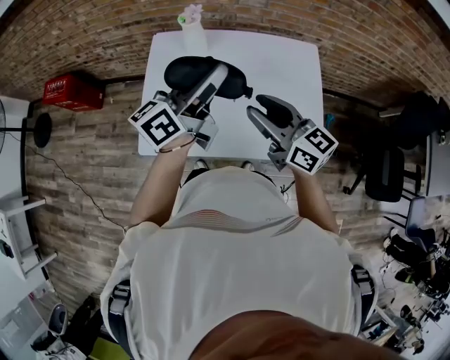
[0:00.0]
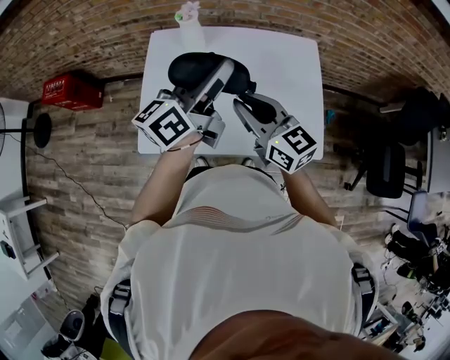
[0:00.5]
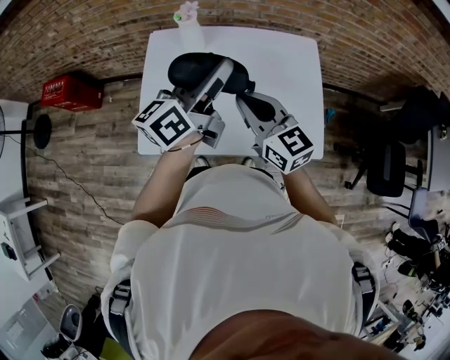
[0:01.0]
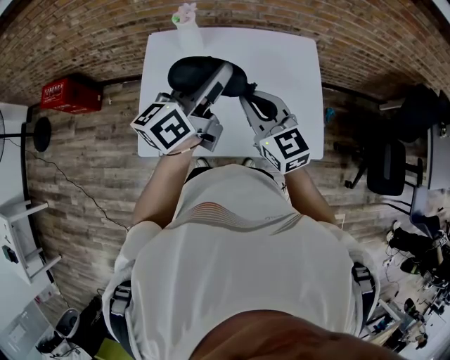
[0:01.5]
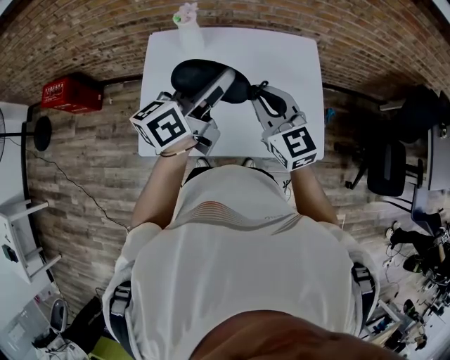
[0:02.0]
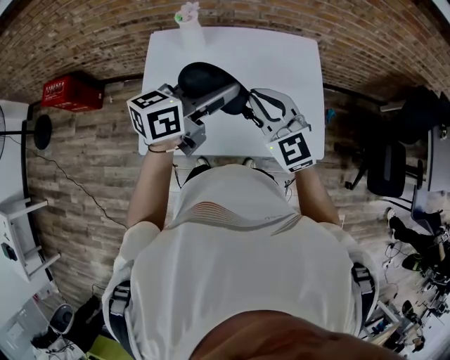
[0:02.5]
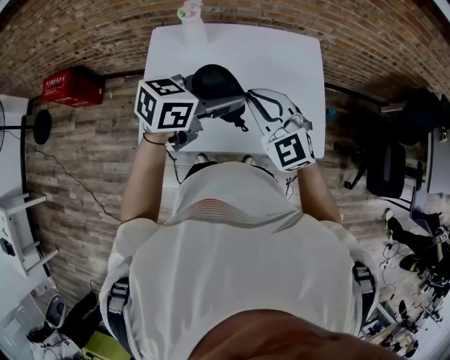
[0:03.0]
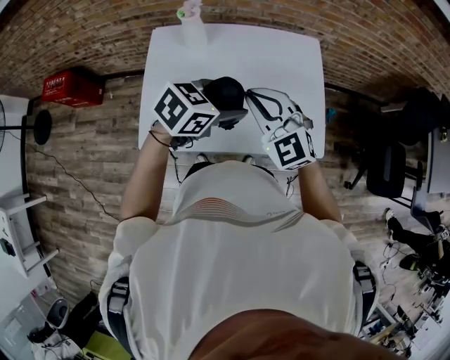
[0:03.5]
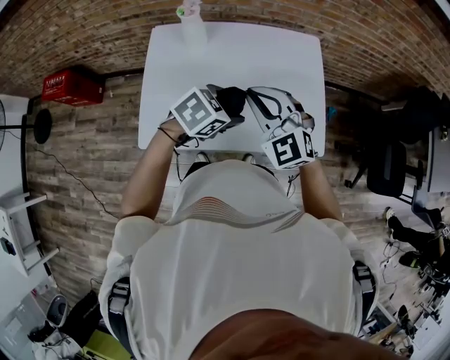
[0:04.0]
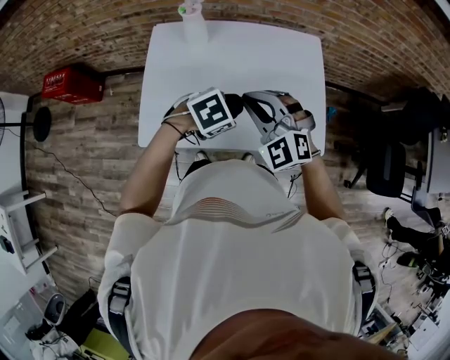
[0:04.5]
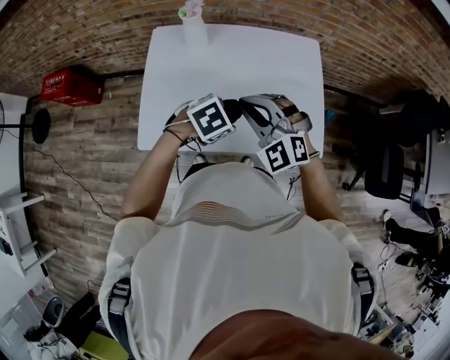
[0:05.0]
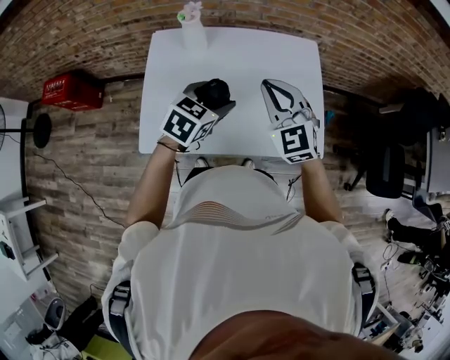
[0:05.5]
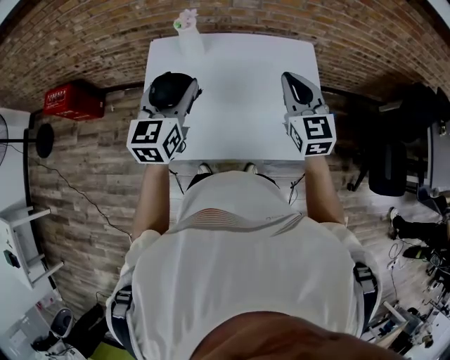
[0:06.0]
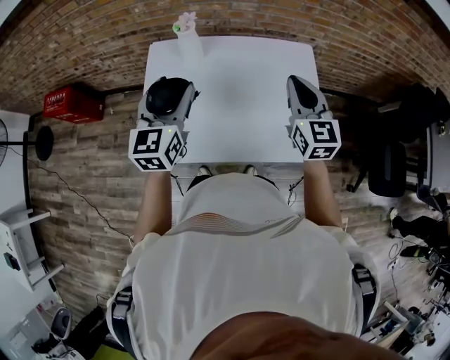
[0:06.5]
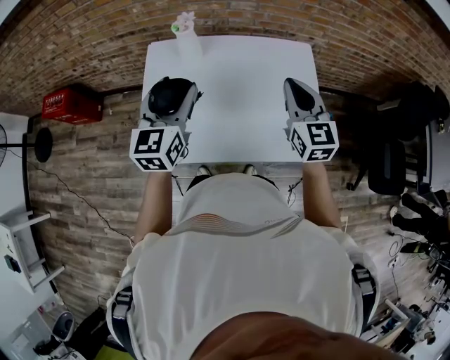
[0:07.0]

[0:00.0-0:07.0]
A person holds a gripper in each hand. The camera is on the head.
0:00.0 to 0:02.0: The right gripper swivels roughly 30 degrees.
0:02.0 to 0:03.5: The right gripper changes its angle by approximately 30 degrees. Meanwhile the left gripper goes roughly 10 cm downward, to the right and backward, and angles its fingers downward, by about 40 degrees.
0:03.5 to 0:05.0: The left gripper heads downward, covering roughly 10 cm, and changes its angle by about 30 degrees.
0:05.0 to 0:07.0: The right gripper travels to the right, forward and upward by some 15 cm, and twists some 50 degrees clockwise, seen from behind, while the left gripper moves upward, to the left and forward, approximately 25 cm, and angles its fingers upward, by approximately 50 degrees.

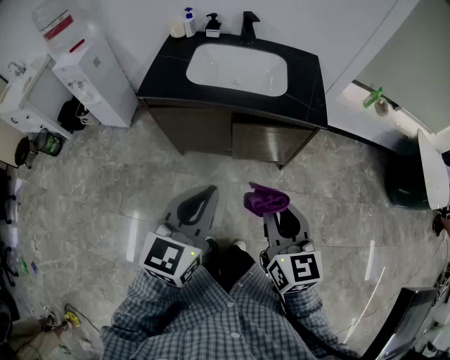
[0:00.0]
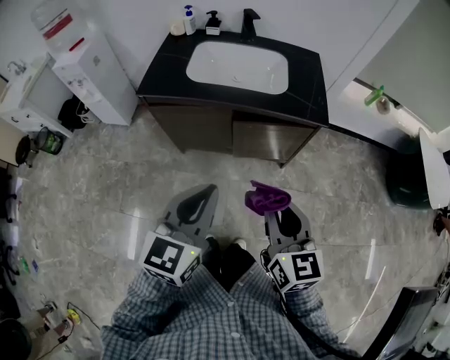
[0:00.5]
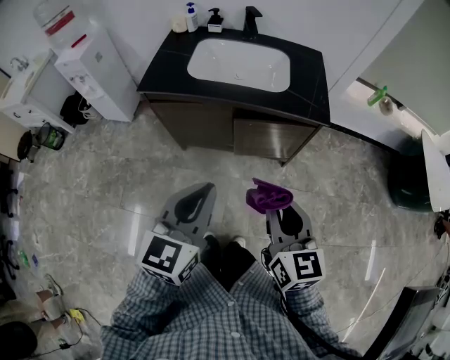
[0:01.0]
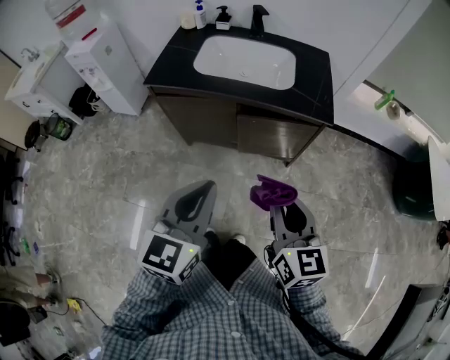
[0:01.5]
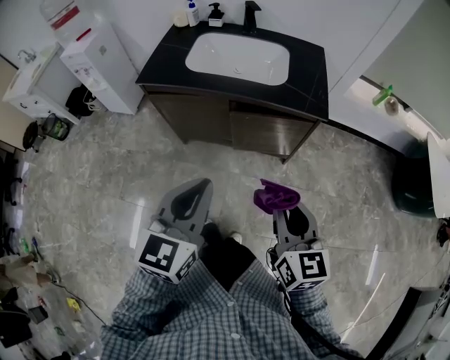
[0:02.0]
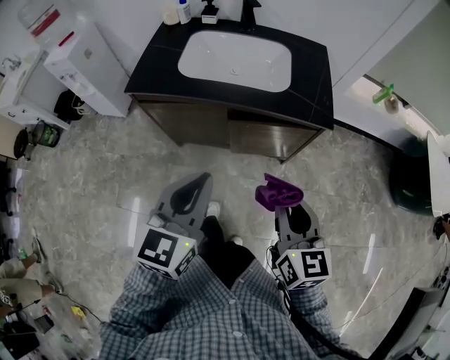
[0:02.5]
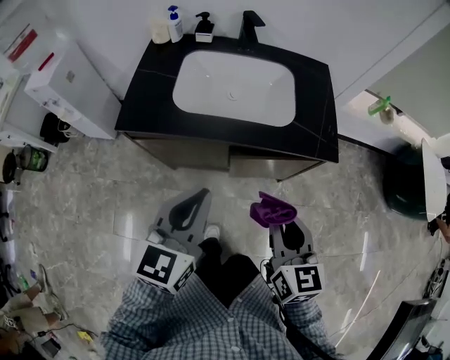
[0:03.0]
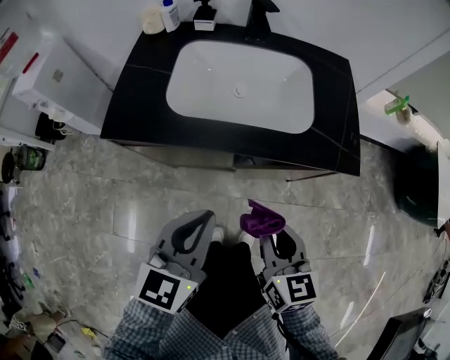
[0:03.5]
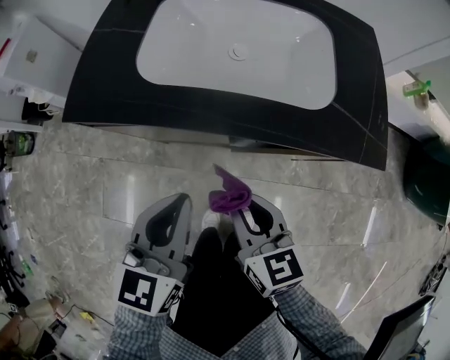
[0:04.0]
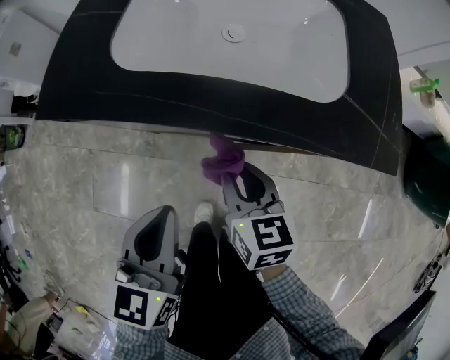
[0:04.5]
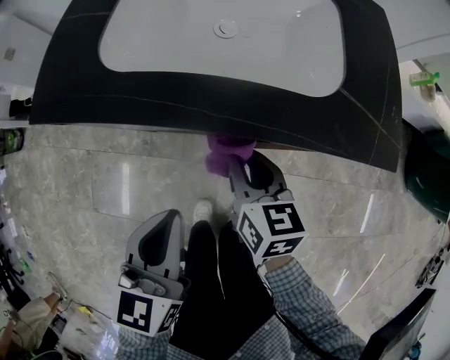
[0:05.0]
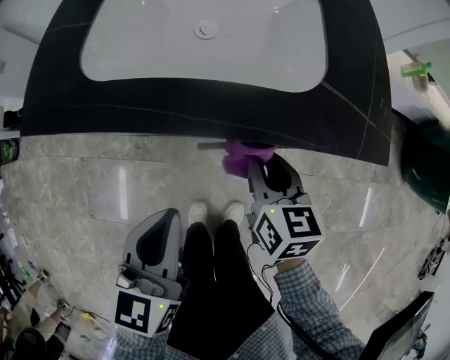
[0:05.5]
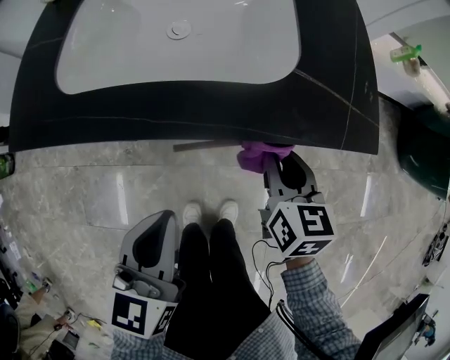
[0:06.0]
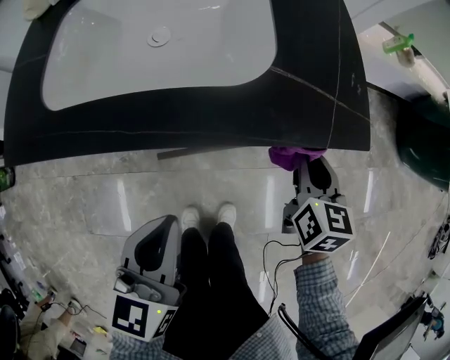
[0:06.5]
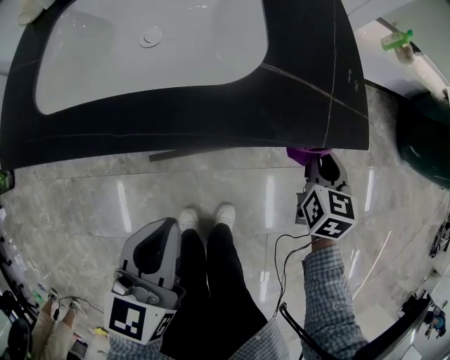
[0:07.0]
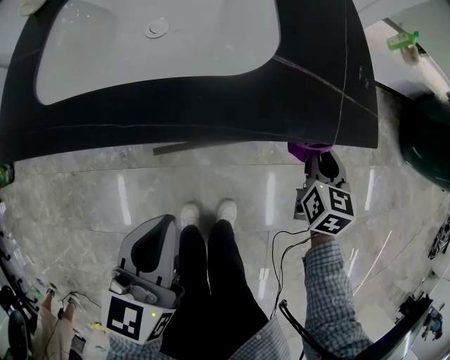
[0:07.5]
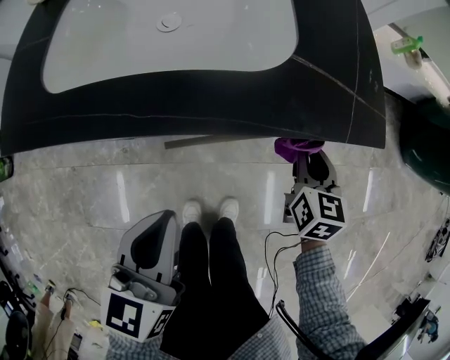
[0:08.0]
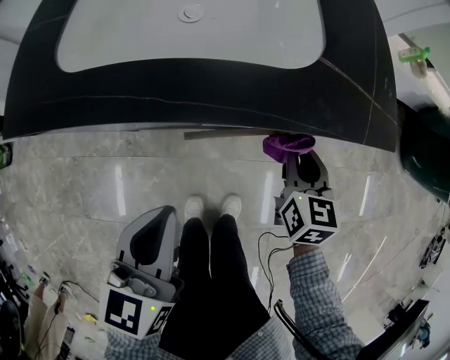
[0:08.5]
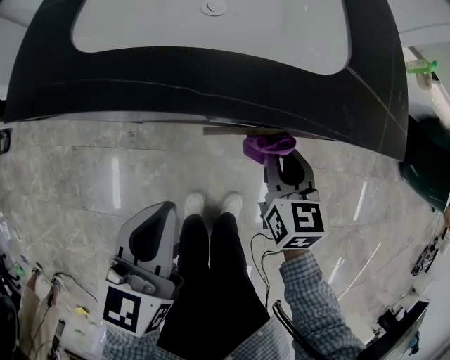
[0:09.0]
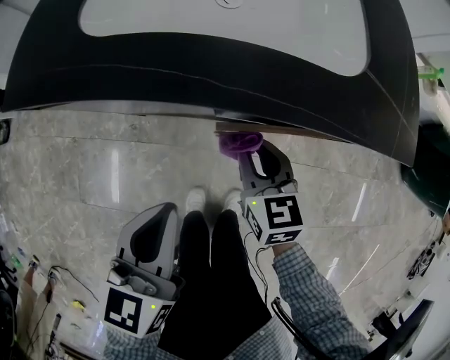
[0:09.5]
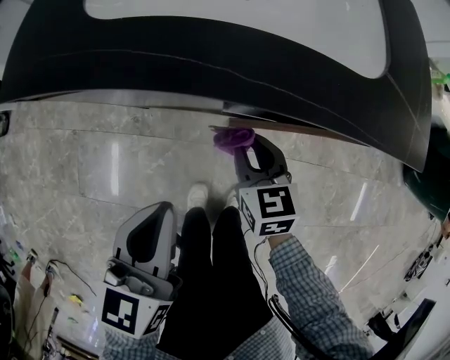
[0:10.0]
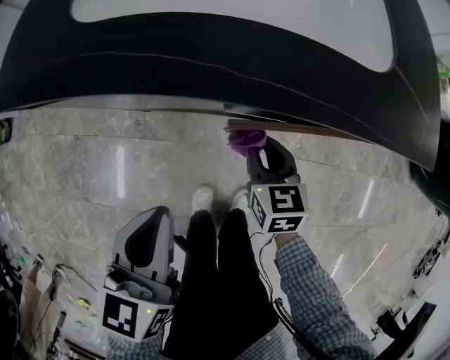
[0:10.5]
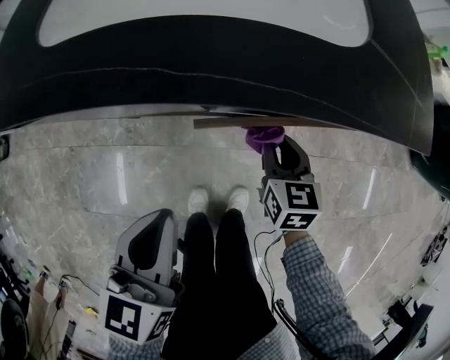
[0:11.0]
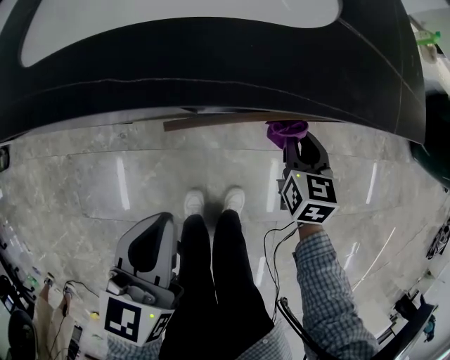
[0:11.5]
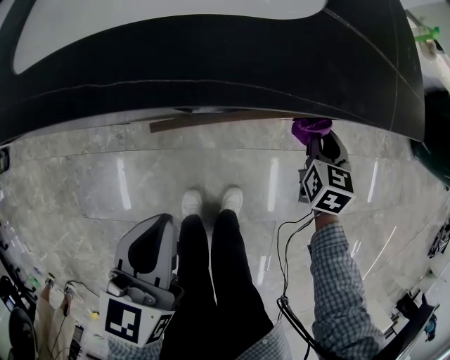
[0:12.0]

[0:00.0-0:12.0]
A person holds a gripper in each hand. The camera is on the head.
0:00.0 to 0:02.0: The right gripper travels to the right by approximately 10 cm.
0:02.0 to 0:04.0: The right gripper moves forward, downward and to the left, approximately 40 cm. Meanwhile the left gripper travels forward and downward by about 35 cm.
0:04.0 to 0:06.0: The right gripper moves to the right, forward and downward, about 25 cm, and changes its angle by roughly 20 degrees. The left gripper heads to the right and downward, covering some 10 cm.
0:06.0 to 0:08.0: The right gripper is displaced to the right and downward by some 10 cm.
0:08.0 to 0:10.0: The left gripper shifts approximately 10 cm to the left; the right gripper heads to the left, covering about 25 cm, and turns by approximately 30 degrees.
0:10.0 to 0:12.0: The right gripper travels to the right by approximately 30 cm, and turns by some 30 degrees. Meanwhile the left gripper travels to the right by roughly 10 cm.

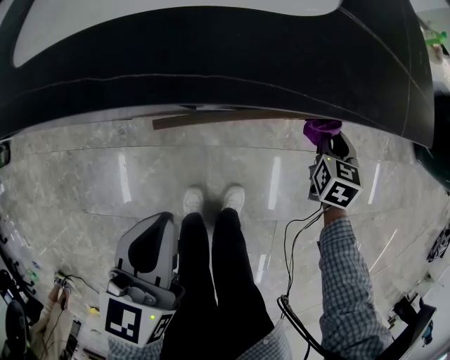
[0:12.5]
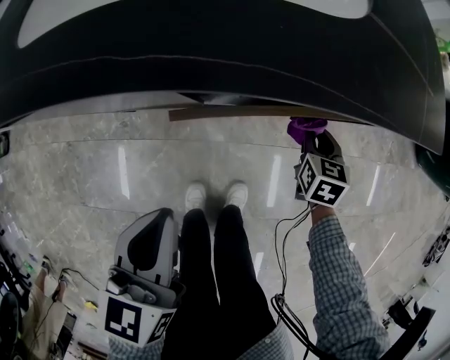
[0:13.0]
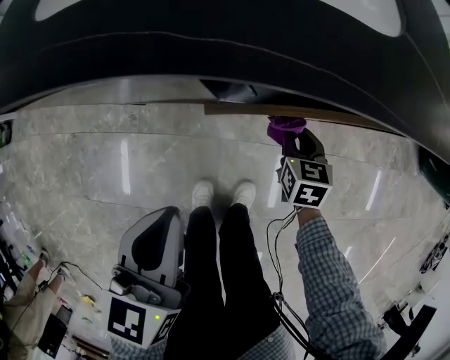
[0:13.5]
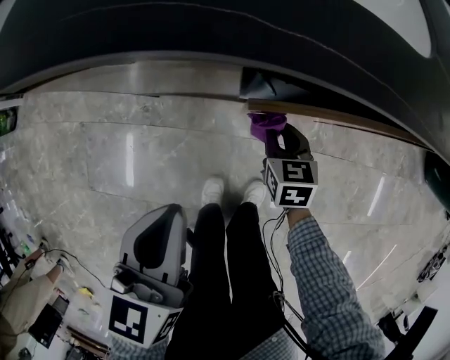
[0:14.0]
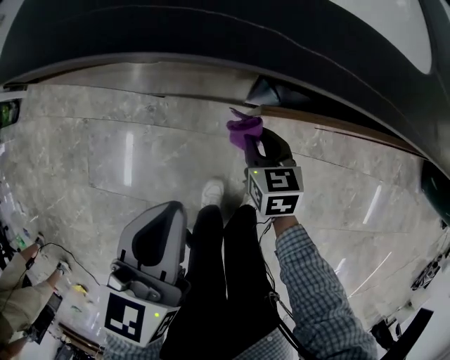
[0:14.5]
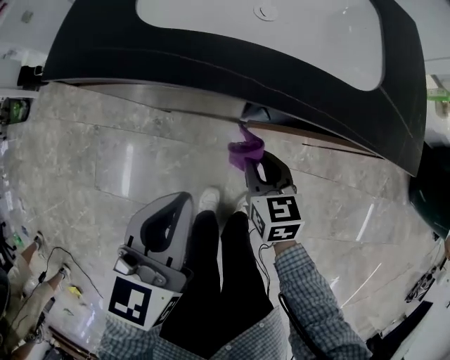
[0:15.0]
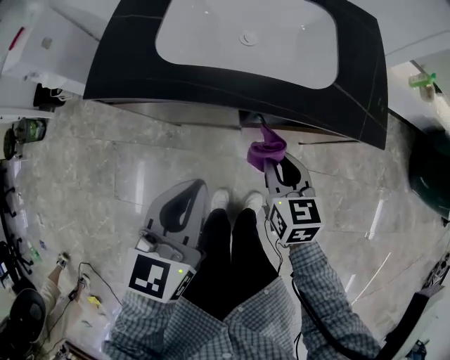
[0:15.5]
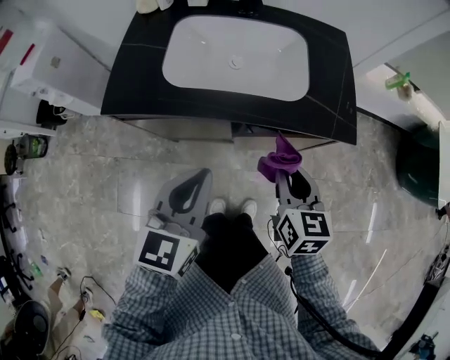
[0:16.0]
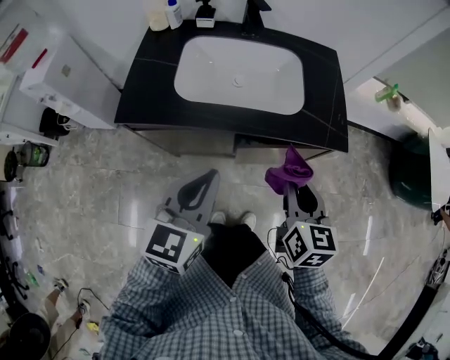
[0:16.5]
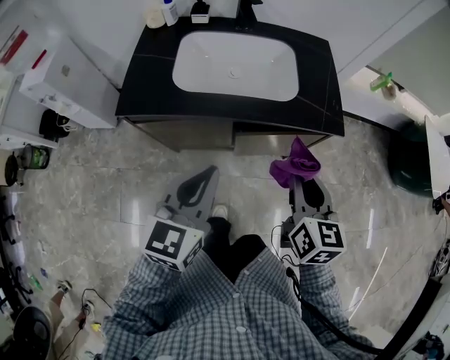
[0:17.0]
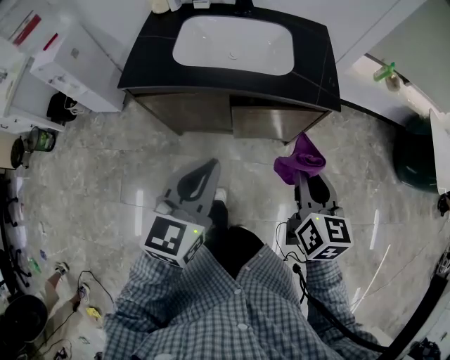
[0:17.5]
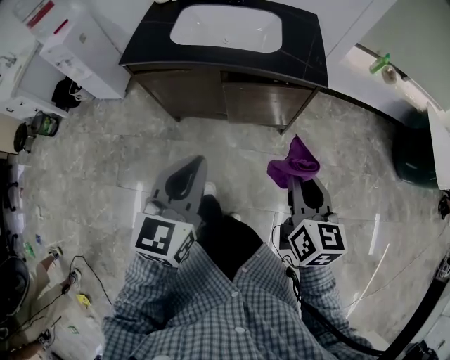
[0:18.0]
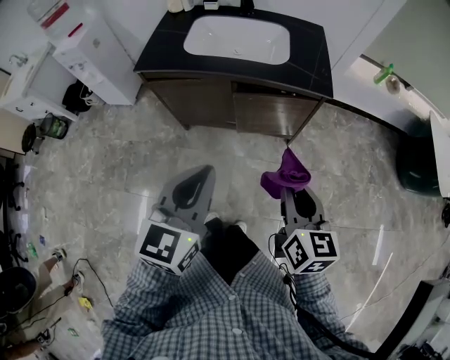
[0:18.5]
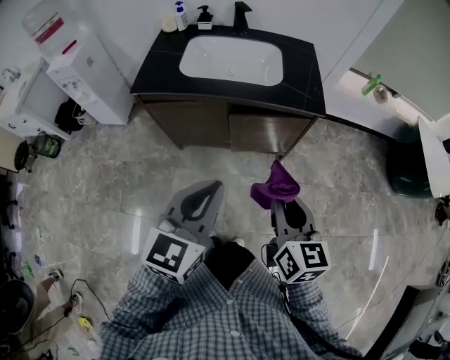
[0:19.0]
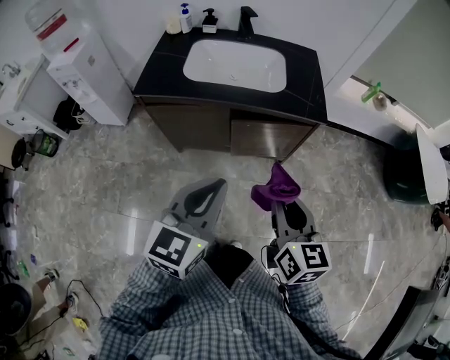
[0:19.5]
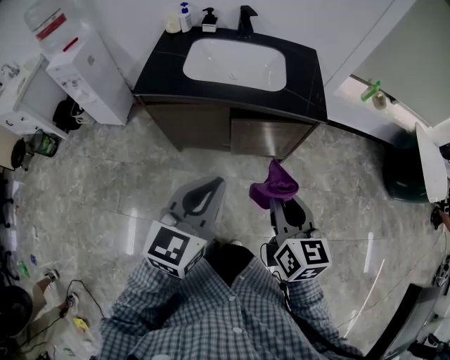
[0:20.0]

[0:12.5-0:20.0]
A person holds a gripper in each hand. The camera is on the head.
0:12.5 to 0:14.5: The right gripper moves approximately 35 cm, and rotates about 30 degrees; the left gripper shifts by some 10 cm.
0:14.5 to 0:16.5: The left gripper heads upward, covering approximately 30 cm, and changes its angle by about 20 degrees; the right gripper is displaced upward by some 50 cm, and swivels roughly 30 degrees.
0:16.5 to 0:18.0: The two grippers go about 25 cm backward and to the right.
0:18.0 to 0:20.0: The left gripper moves some 5 cm. The right gripper heads to the left, covering roughly 10 cm.
